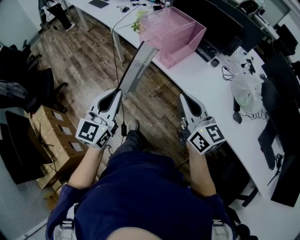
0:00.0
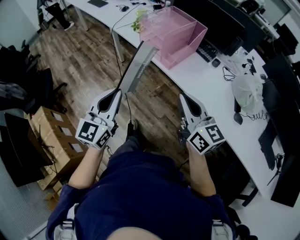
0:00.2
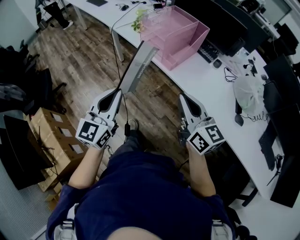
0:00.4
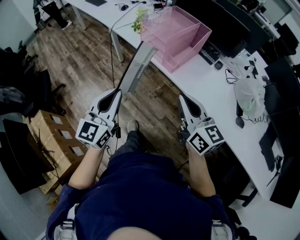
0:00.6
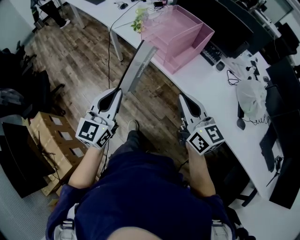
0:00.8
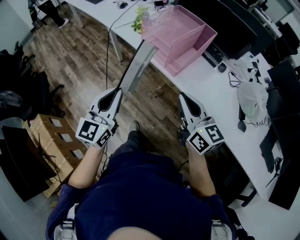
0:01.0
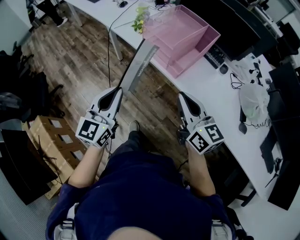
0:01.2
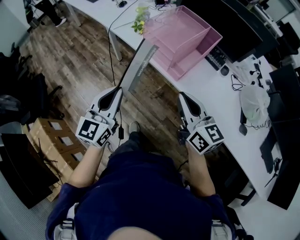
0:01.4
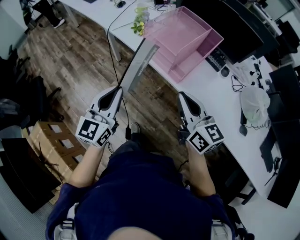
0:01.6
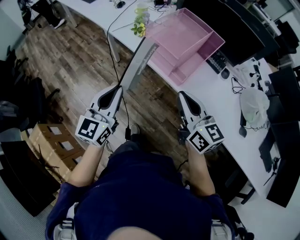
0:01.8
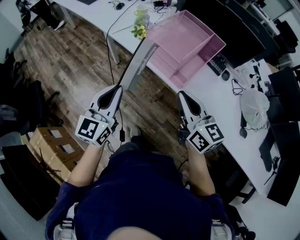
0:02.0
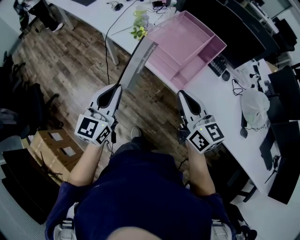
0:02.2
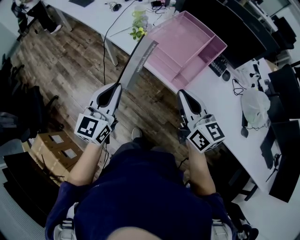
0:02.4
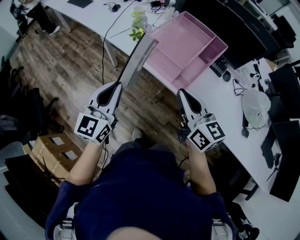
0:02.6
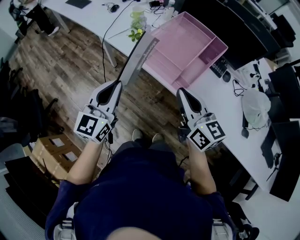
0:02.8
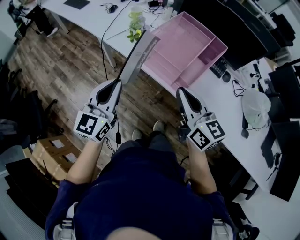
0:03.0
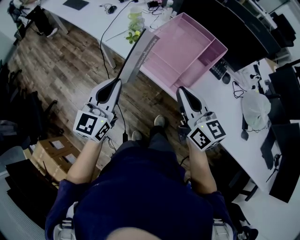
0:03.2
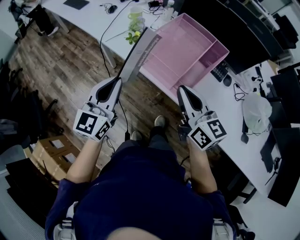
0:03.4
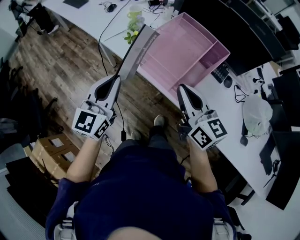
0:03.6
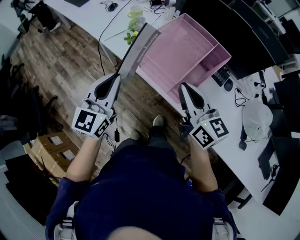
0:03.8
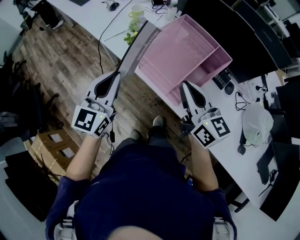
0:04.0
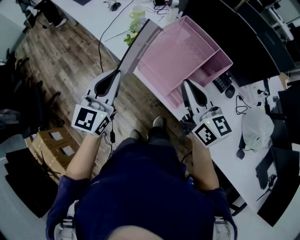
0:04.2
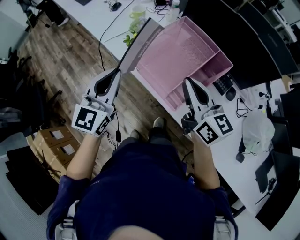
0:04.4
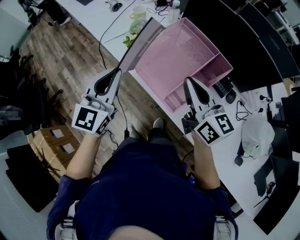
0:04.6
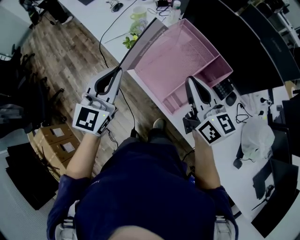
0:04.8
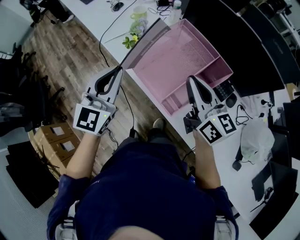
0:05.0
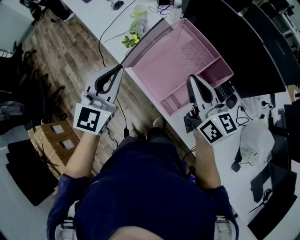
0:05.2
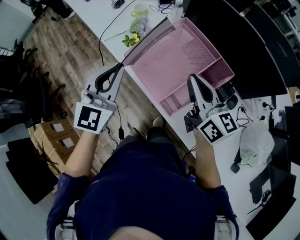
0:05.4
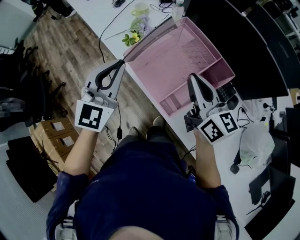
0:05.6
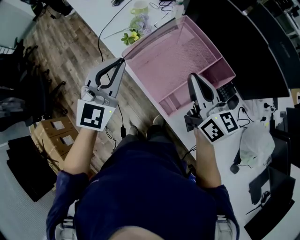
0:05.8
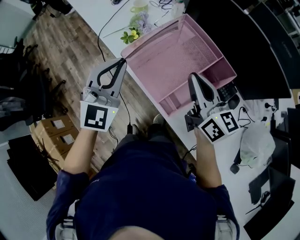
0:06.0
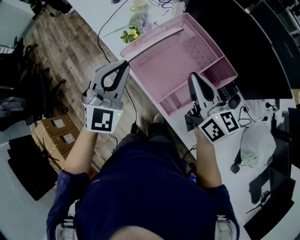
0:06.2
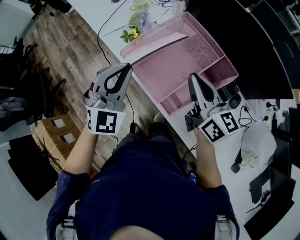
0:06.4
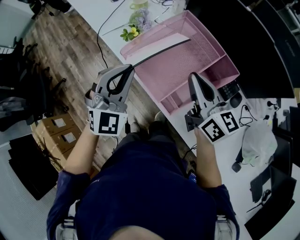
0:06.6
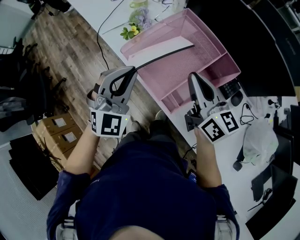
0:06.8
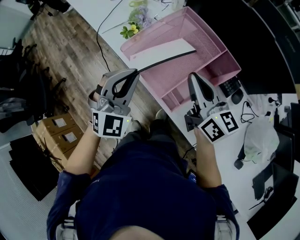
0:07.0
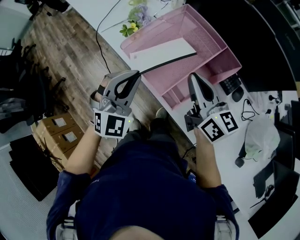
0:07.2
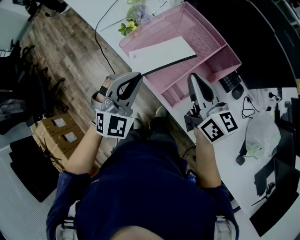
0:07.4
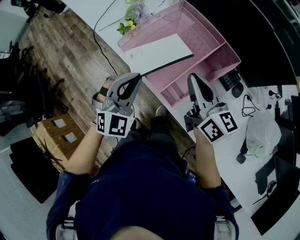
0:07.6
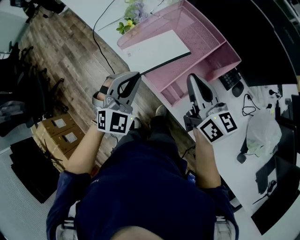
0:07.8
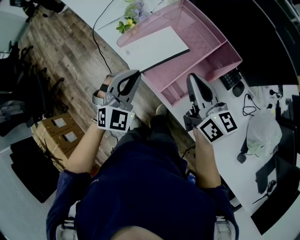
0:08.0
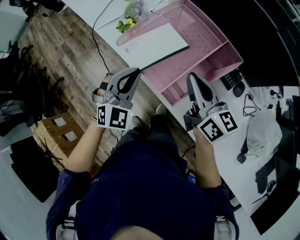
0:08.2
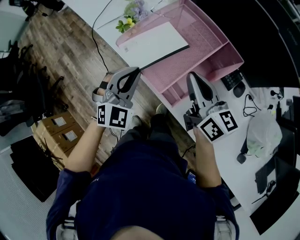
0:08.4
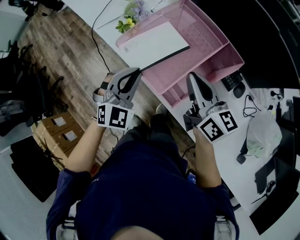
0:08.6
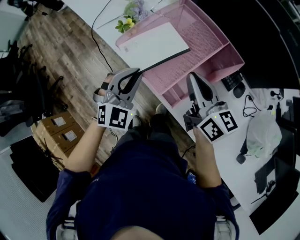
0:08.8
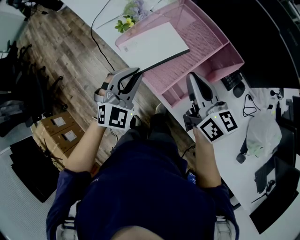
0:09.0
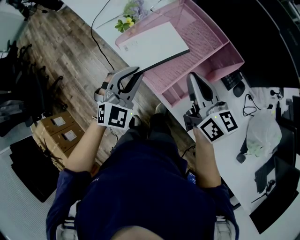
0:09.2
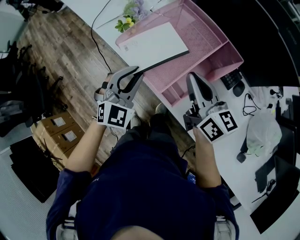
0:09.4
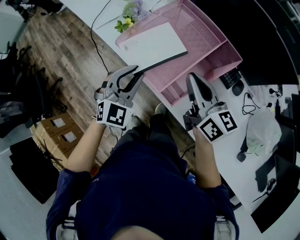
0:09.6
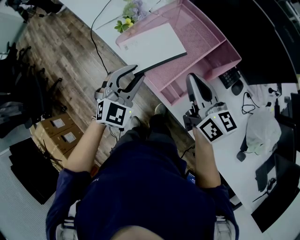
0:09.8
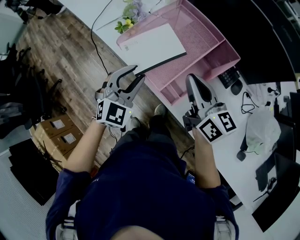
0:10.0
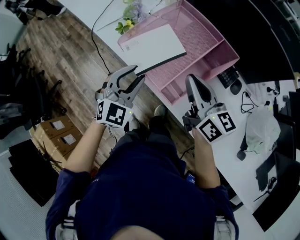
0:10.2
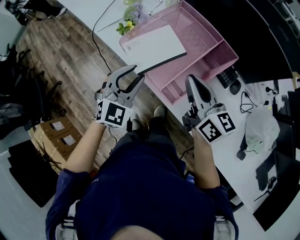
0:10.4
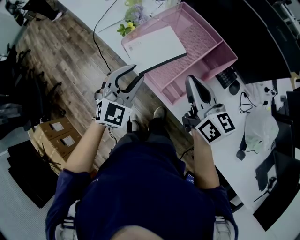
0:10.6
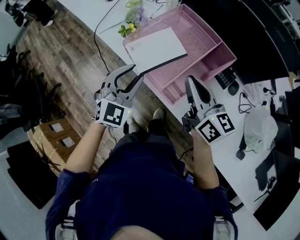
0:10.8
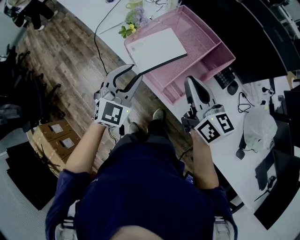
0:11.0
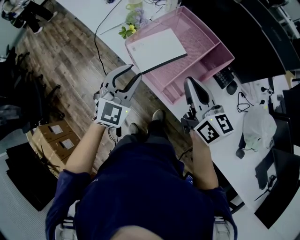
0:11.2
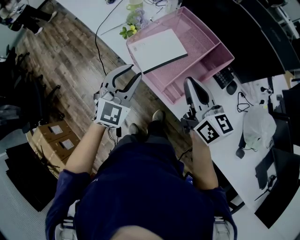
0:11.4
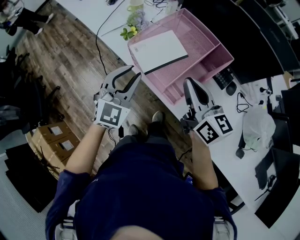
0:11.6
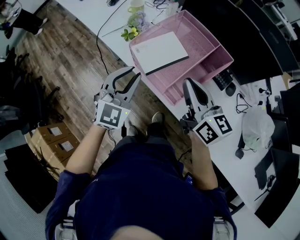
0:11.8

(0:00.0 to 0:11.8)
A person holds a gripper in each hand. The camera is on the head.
0:00.0 - 0:01.4: The left gripper is displaced forward by roughly 15 cm; the right gripper goes approximately 15 cm forward and to the left.
0:01.4 - 0:03.0: The grippers both shift forward by some 15 cm.
0:03.0 - 0:04.4: The two grippers go some 15 cm forward and to the right.
0:04.4 - 0:06.0: The left gripper is displaced to the right and forward by roughly 10 cm, and rotates about 30 degrees, while the right gripper goes some 10 cm forward and to the right.
0:06.0 - 0:07.4: The left gripper is displaced downward and backward by roughly 10 cm.
0:07.4 - 0:08.8: The left gripper shifts by some 5 cm.
0:08.8 - 0:10.4: The left gripper opens.
0:10.4 - 0:11.8: The left gripper travels upward by about 5 cm. The right gripper shifts by about 5 cm.

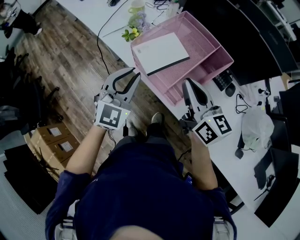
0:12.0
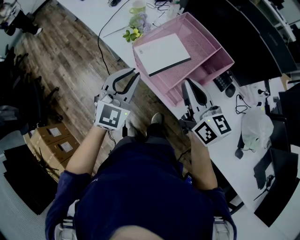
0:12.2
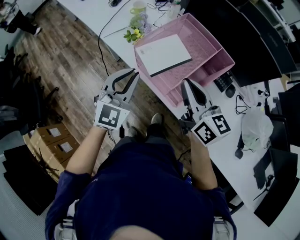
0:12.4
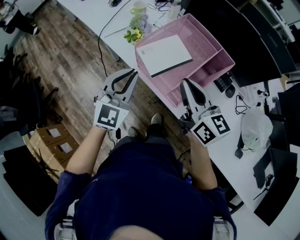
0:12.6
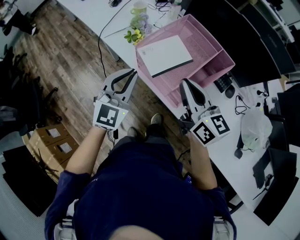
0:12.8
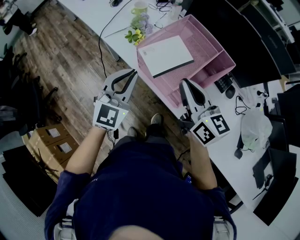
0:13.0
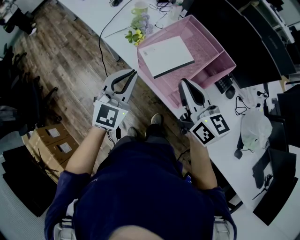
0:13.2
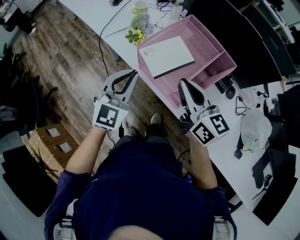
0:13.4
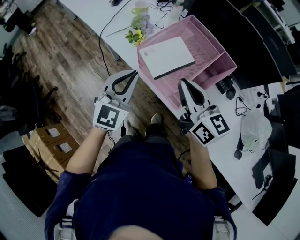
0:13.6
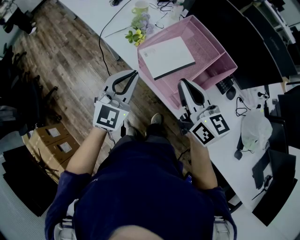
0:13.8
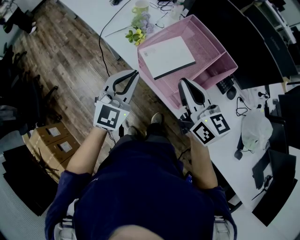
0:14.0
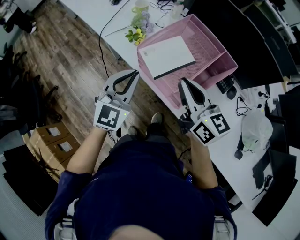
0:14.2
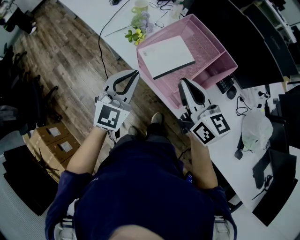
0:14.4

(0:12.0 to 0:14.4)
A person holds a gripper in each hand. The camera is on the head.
0:12.0 - 0:13.2: There are only small adjustments of the grippers.
0:13.2 - 0:14.4: Both grippers stay about where they are.

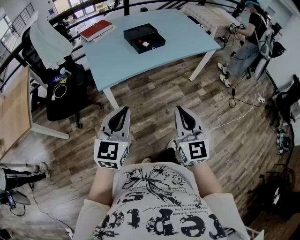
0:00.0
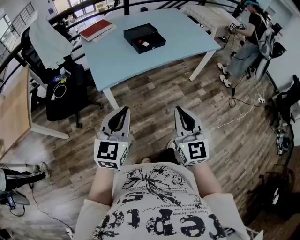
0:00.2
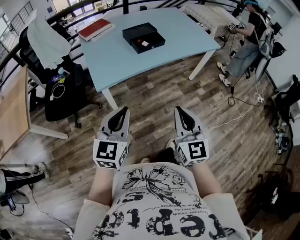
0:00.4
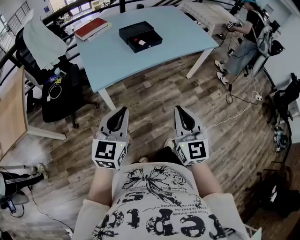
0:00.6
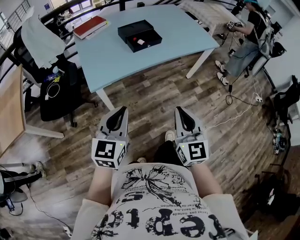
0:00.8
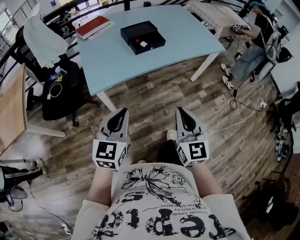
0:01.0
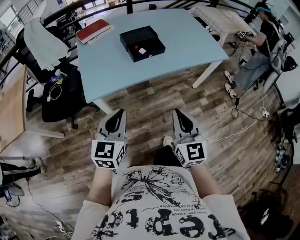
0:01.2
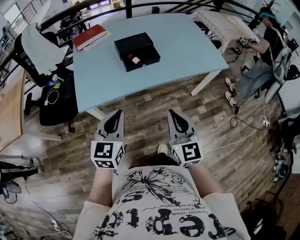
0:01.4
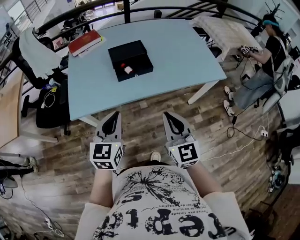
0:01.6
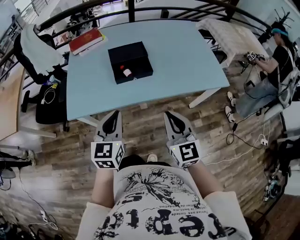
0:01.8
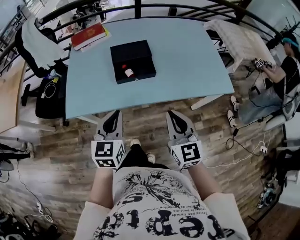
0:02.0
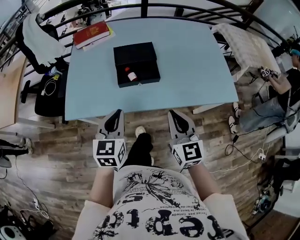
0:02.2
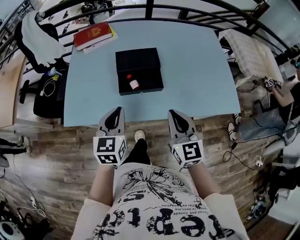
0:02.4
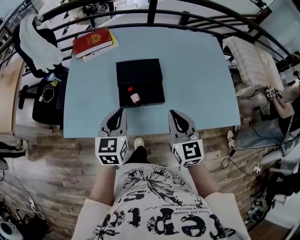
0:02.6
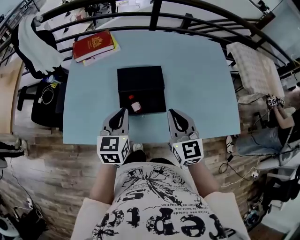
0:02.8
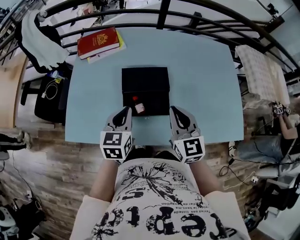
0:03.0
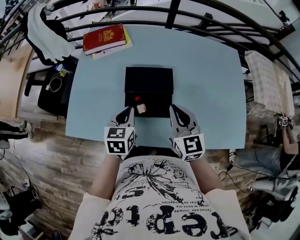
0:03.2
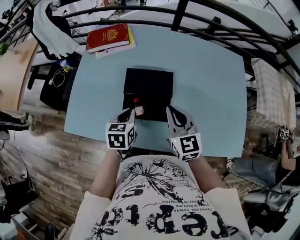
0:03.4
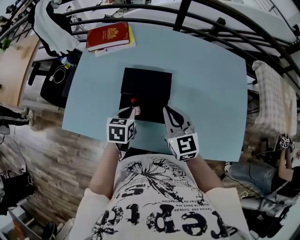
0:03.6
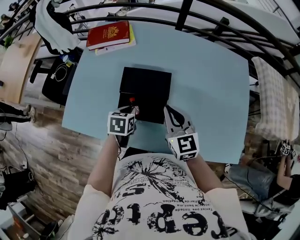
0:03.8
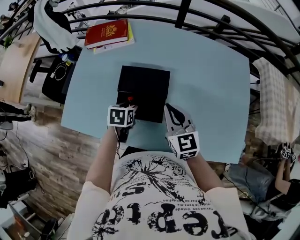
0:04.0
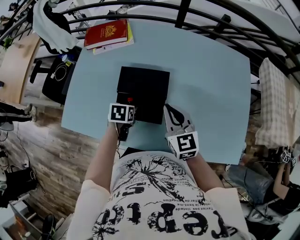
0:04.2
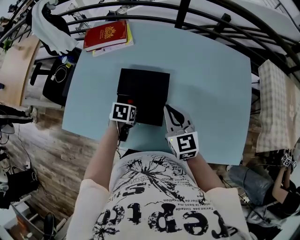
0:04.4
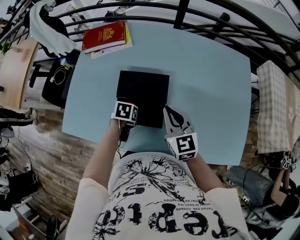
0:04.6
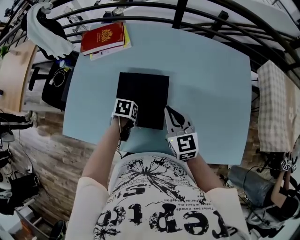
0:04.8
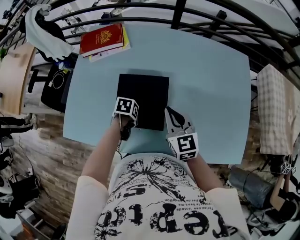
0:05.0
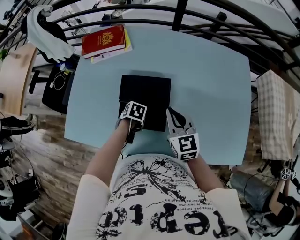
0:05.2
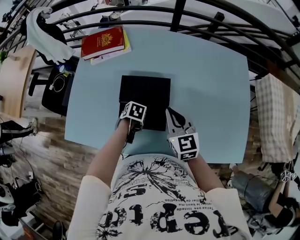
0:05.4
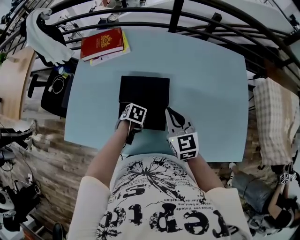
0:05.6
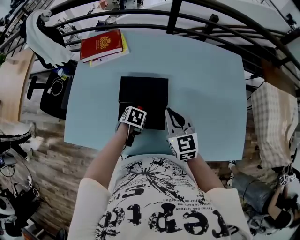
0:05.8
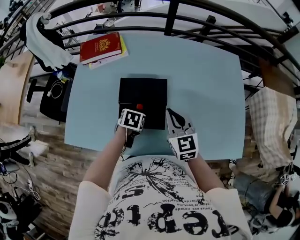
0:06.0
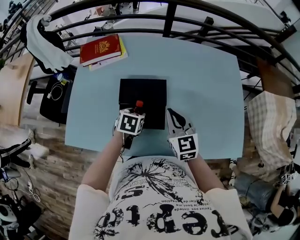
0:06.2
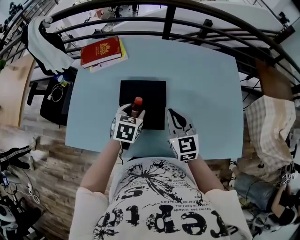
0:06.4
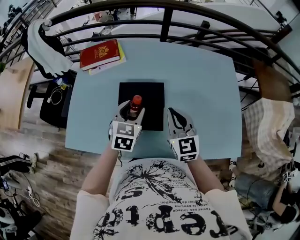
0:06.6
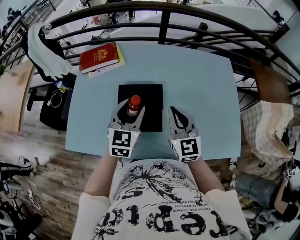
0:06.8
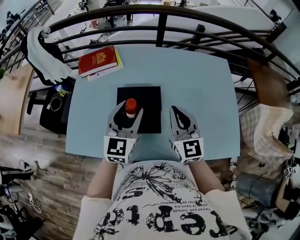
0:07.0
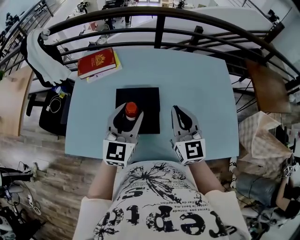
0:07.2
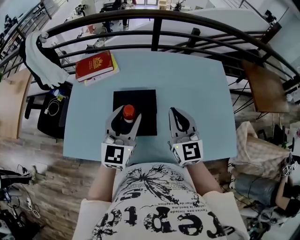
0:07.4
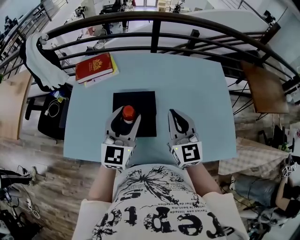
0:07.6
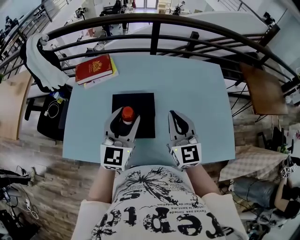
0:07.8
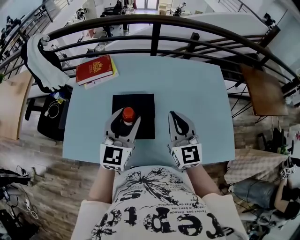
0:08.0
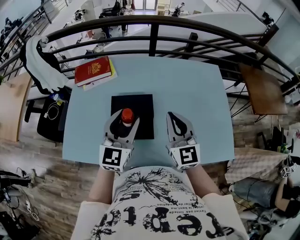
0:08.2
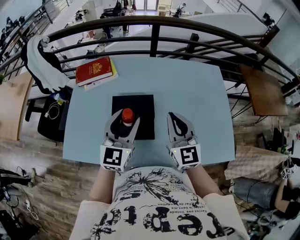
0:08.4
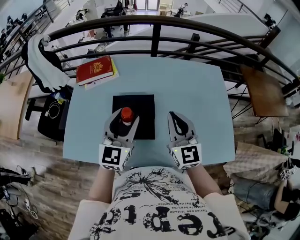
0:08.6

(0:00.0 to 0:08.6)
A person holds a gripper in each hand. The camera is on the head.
0:00.0 - 0:01.4: Both grippers travel together forward and to the right, some 25 cm.
0:01.4 - 0:02.8: The two grippers go about 40 cm forward. The left gripper rotates some 20 degrees.
0:02.8 - 0:04.4: The right gripper is displaced forward and downward by roughly 15 cm, while the left gripper moves downward and forward, approximately 20 cm, points its fingers roughly 50 degrees further downward, and opens.
0:04.4 - 0:05.8: There are only small adjustments of the grippers.
0:05.8 - 0:07.2: The left gripper travels upward by some 30 cm, and tilts its fingers some 70 degrees upward. The right gripper travels upward by approximately 10 cm, and swivels roughly 20 degrees.
0:07.2 - 0:08.6: The grippers make only small movements.

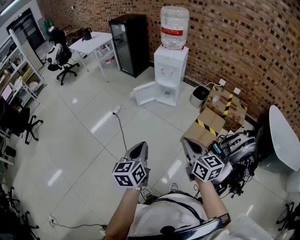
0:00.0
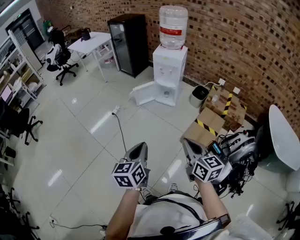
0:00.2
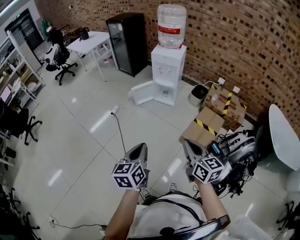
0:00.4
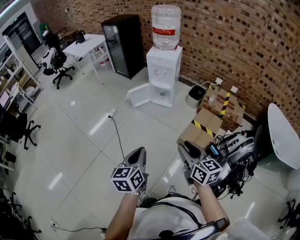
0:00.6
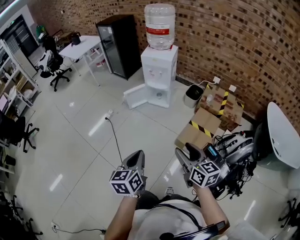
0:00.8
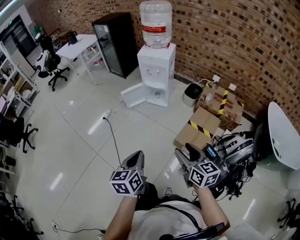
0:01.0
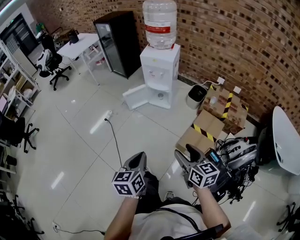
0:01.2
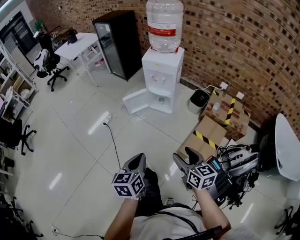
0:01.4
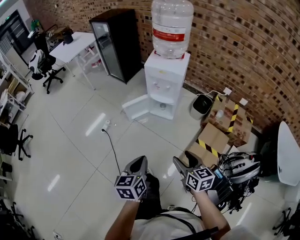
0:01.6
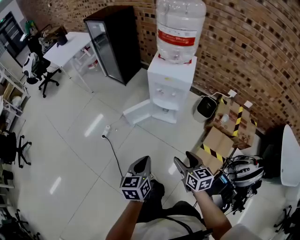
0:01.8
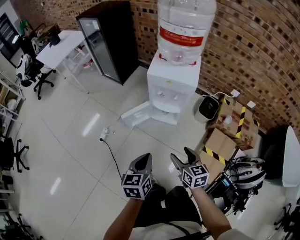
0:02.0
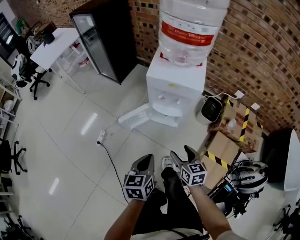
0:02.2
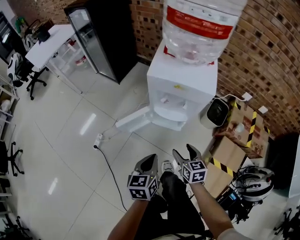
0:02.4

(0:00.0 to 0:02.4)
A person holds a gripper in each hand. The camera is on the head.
0:00.0 - 0:01.2: Both grippers move forward, to the right and downward, approximately 15 cm. The right gripper opens up.
0:01.2 - 0:02.4: The pair of grippers is taken forward, about 50 cm. Both grippers move downward, roughly 25 cm.
